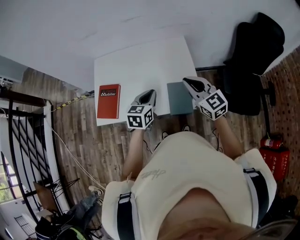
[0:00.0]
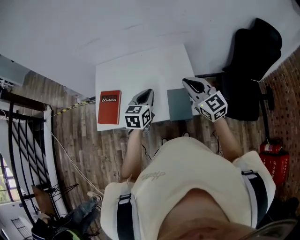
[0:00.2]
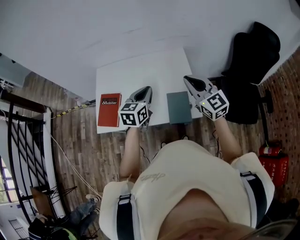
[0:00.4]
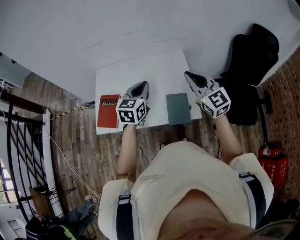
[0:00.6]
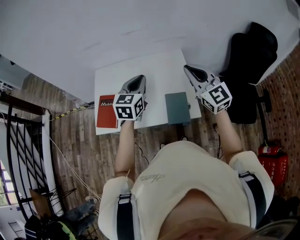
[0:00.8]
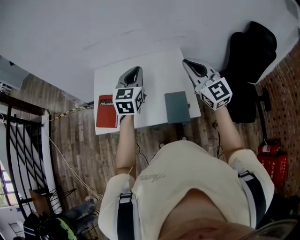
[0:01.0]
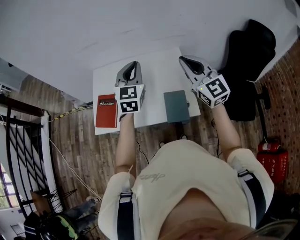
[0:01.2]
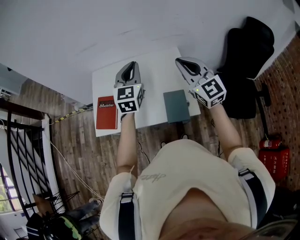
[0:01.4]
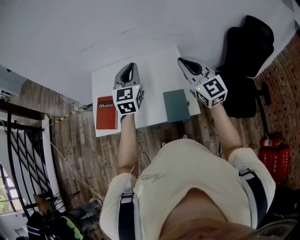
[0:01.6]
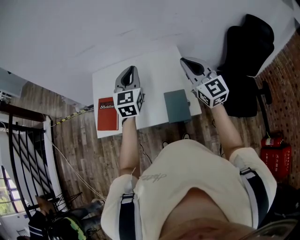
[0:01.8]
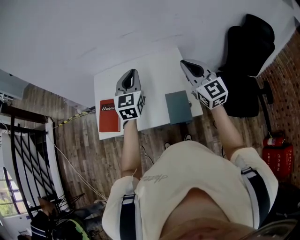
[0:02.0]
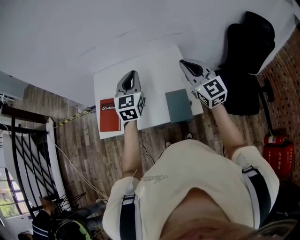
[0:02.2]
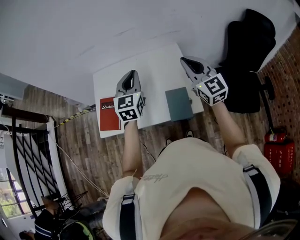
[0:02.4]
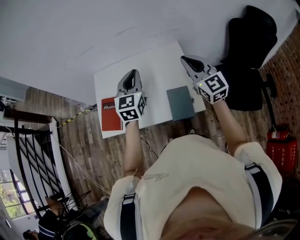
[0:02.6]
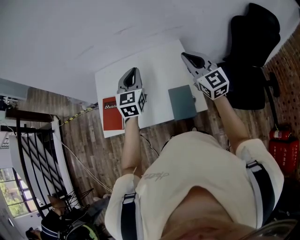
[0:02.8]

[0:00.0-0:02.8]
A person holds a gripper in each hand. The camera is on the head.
0:00.0 to 0:01.4: The left gripper is displaced upward and forward by some 20 cm, and changes its angle by approximately 30 degrees, while the right gripper moves upward, about 15 cm.
0:01.4 to 0:02.8: The right gripper ends up about 10 cm from where it was, while the left gripper travels downward by roughly 5 cm.

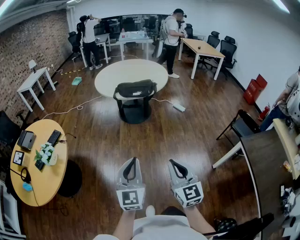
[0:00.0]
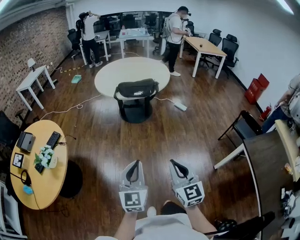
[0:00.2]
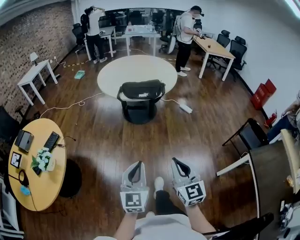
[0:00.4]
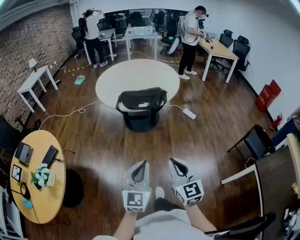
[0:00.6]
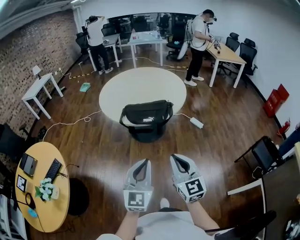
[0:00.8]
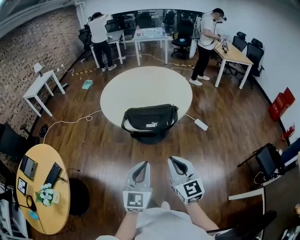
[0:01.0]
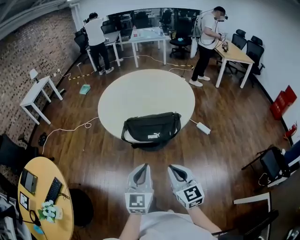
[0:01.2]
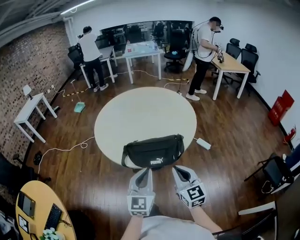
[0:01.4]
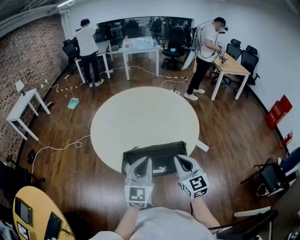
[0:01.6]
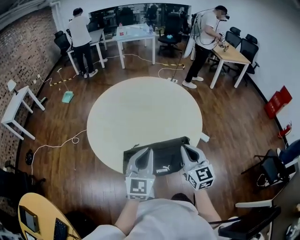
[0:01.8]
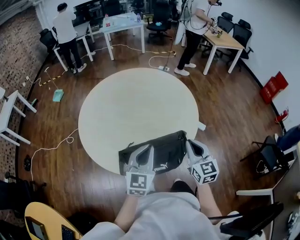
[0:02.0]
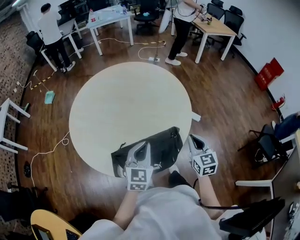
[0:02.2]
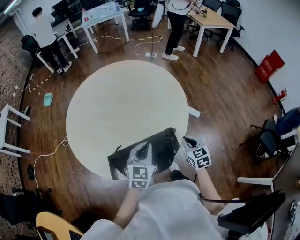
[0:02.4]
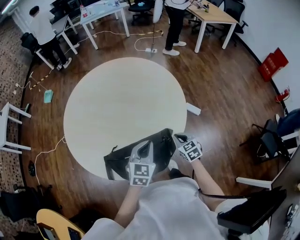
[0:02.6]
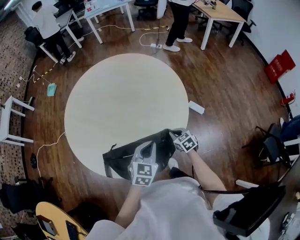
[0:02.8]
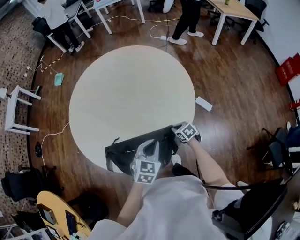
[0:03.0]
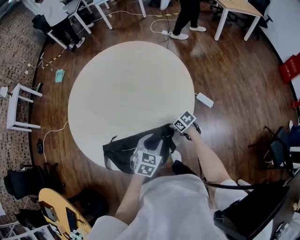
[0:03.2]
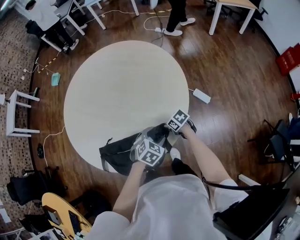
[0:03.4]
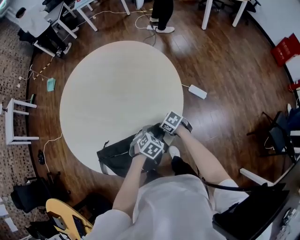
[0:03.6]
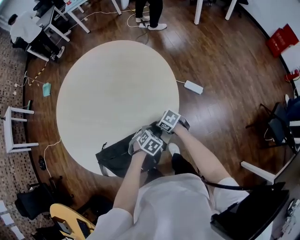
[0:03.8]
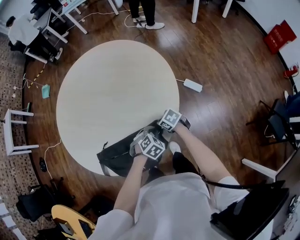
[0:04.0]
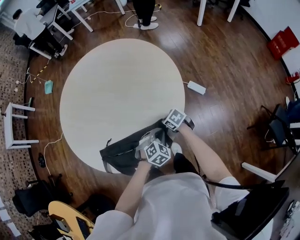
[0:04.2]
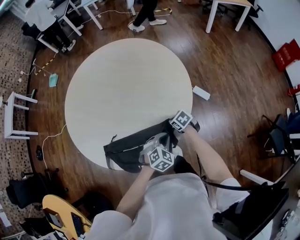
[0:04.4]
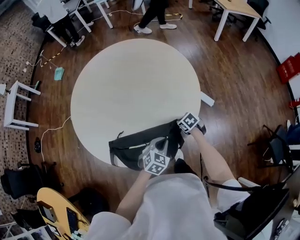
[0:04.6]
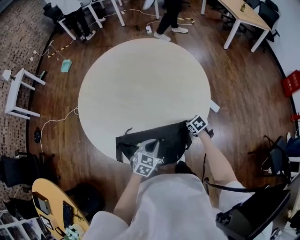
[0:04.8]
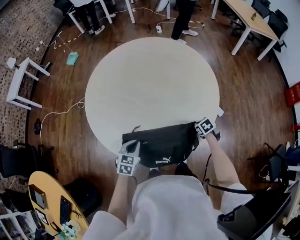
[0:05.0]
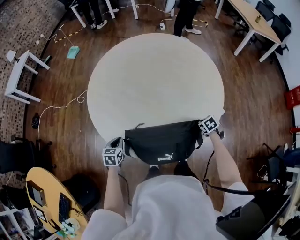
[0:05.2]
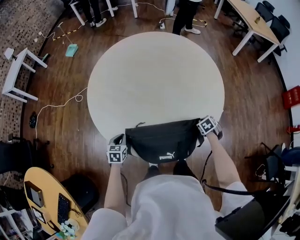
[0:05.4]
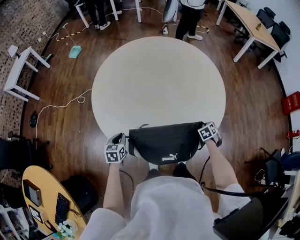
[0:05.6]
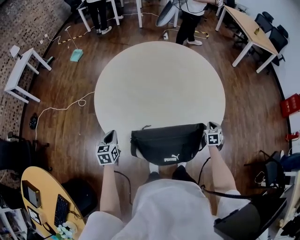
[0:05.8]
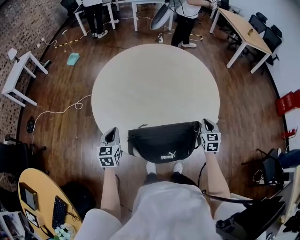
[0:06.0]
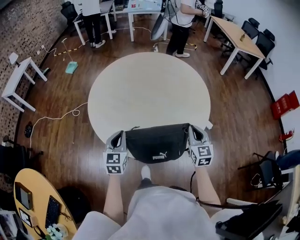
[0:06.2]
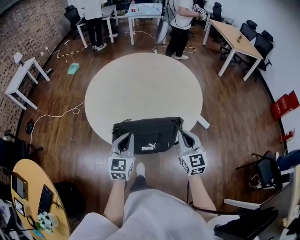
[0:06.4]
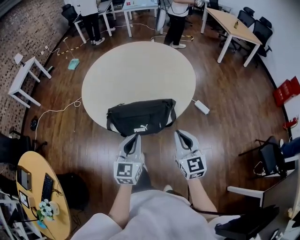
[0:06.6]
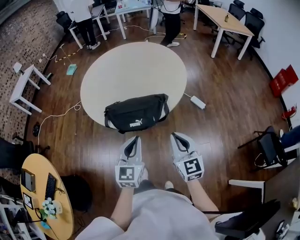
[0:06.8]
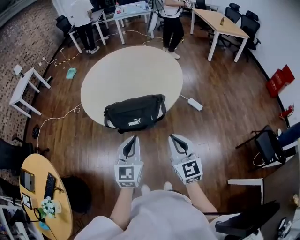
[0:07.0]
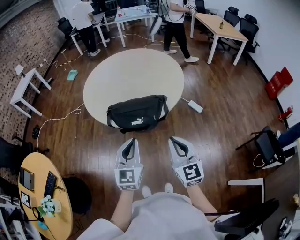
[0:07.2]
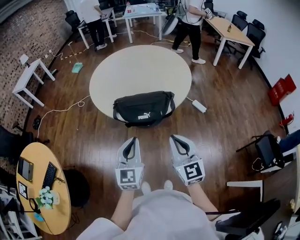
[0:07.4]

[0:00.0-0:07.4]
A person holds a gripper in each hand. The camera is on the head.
0:00.0 to 0:01.4: The pair of grippers is taken forward, about 70 cm.
0:01.4 to 0:03.0: The left gripper changes place by roughly 40 cm, and tilts its fingers some 40 degrees downward. The right gripper moves roughly 50 cm, and angles its fingers downward, by some 50 degrees.
0:03.0 to 0:04.4: The left gripper travels downward by approximately 10 cm, swivels approximately 30 degrees, and opens, then closes once more.
0:04.4 to 0:06.0: The right gripper goes approximately 15 cm upward, and changes its angle by roughly 50 degrees, while the left gripper changes place by some 50 cm, and rotates about 60 degrees.
0:06.0 to 0:07.4: The right gripper heads backward and upward, covering about 50 cm, and rotates about 30 degrees. The left gripper travels backward and to the right by some 50 cm, and turns by approximately 20 degrees.

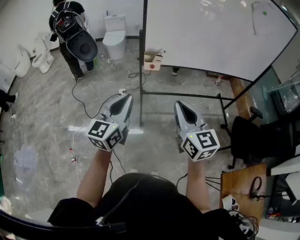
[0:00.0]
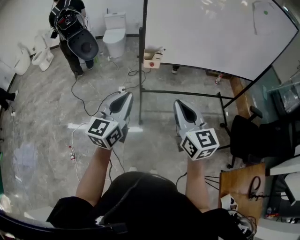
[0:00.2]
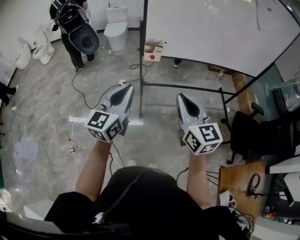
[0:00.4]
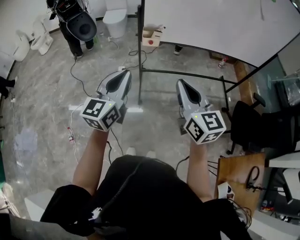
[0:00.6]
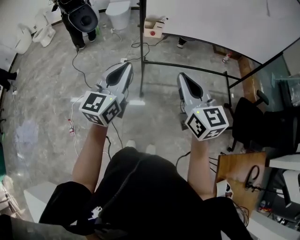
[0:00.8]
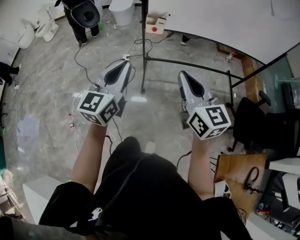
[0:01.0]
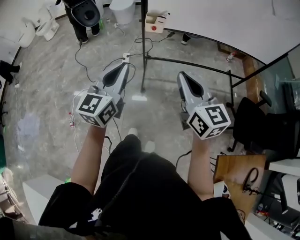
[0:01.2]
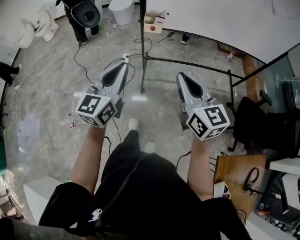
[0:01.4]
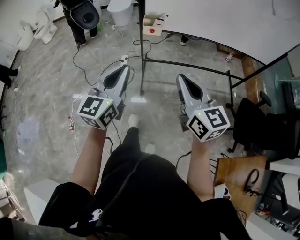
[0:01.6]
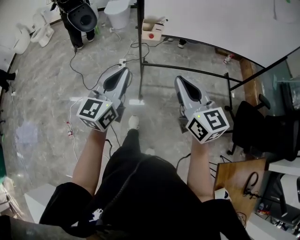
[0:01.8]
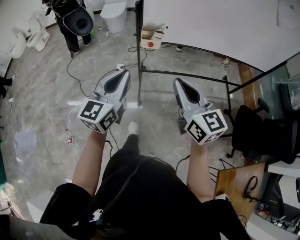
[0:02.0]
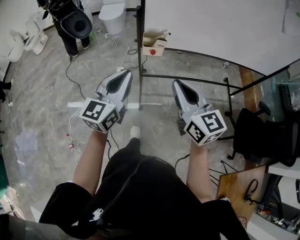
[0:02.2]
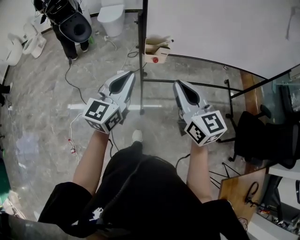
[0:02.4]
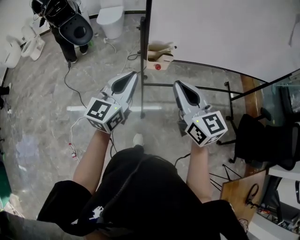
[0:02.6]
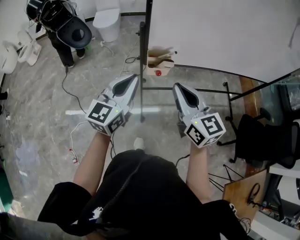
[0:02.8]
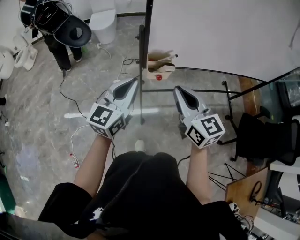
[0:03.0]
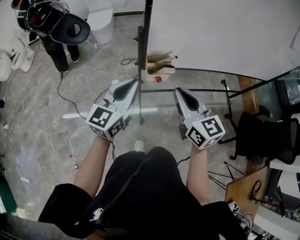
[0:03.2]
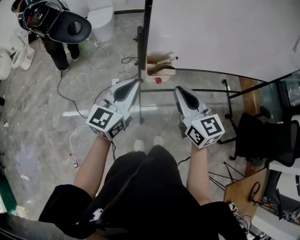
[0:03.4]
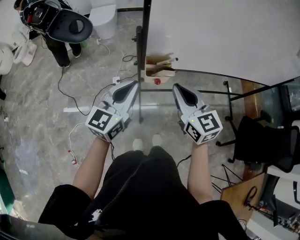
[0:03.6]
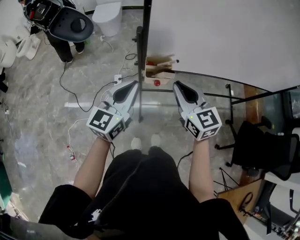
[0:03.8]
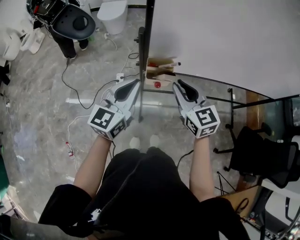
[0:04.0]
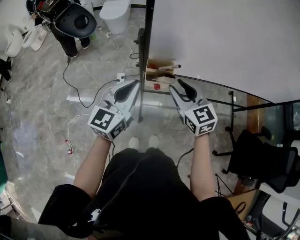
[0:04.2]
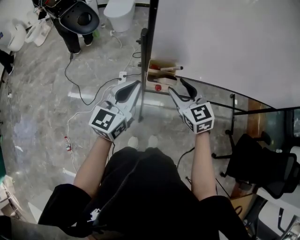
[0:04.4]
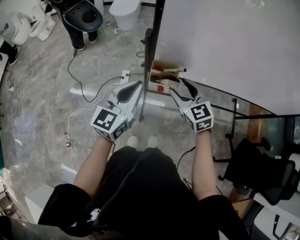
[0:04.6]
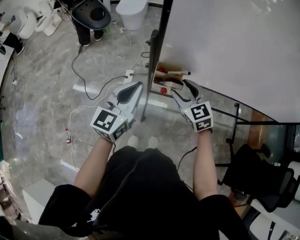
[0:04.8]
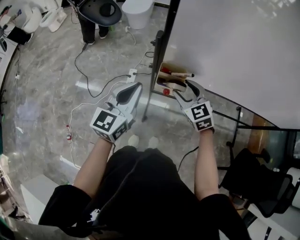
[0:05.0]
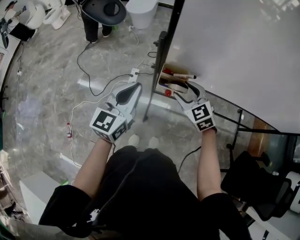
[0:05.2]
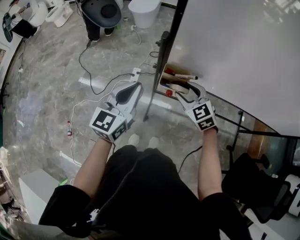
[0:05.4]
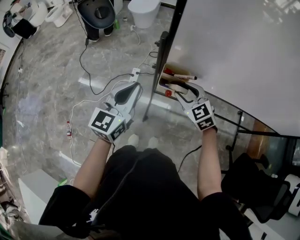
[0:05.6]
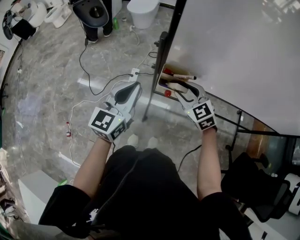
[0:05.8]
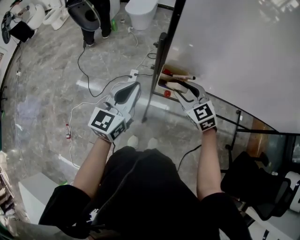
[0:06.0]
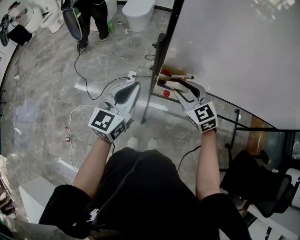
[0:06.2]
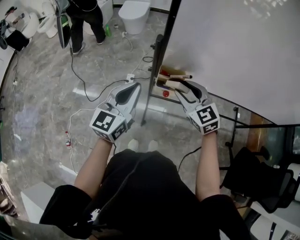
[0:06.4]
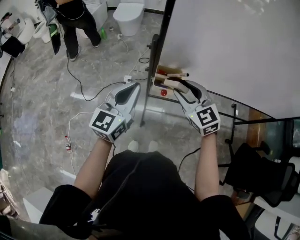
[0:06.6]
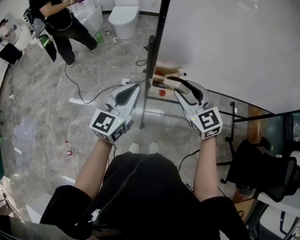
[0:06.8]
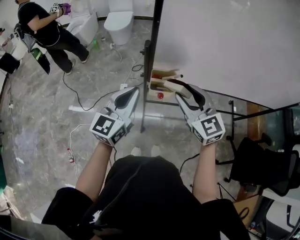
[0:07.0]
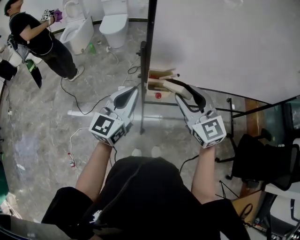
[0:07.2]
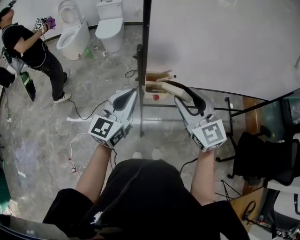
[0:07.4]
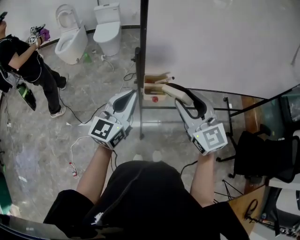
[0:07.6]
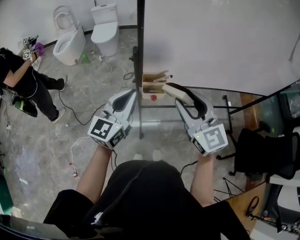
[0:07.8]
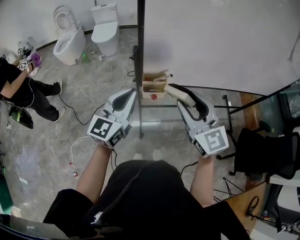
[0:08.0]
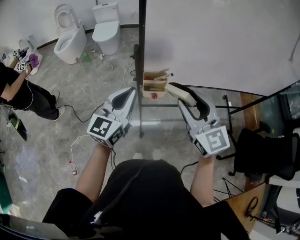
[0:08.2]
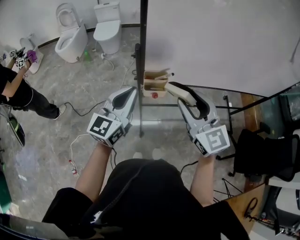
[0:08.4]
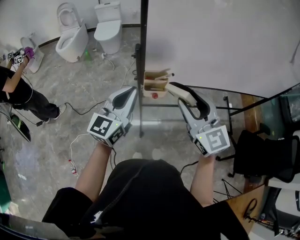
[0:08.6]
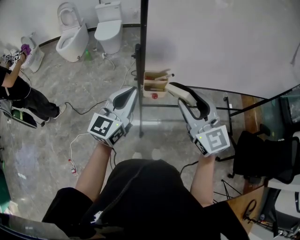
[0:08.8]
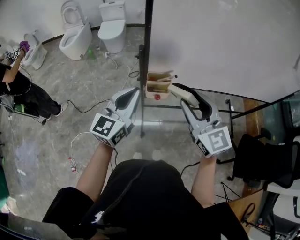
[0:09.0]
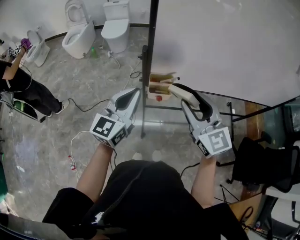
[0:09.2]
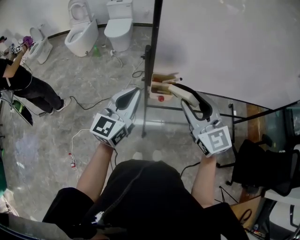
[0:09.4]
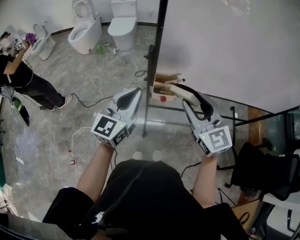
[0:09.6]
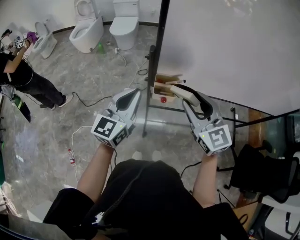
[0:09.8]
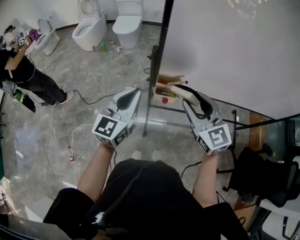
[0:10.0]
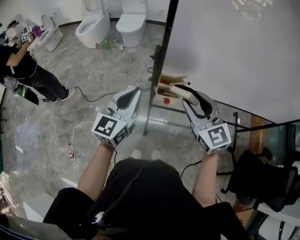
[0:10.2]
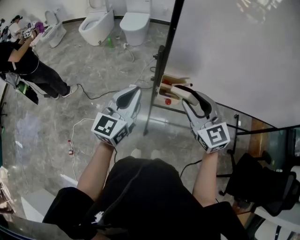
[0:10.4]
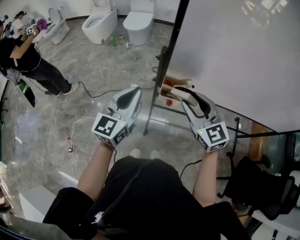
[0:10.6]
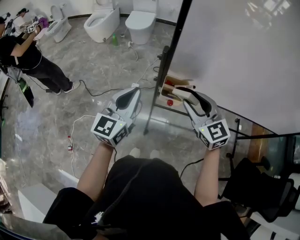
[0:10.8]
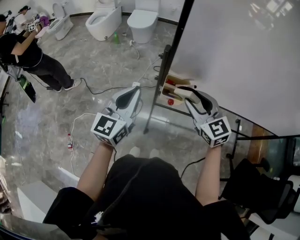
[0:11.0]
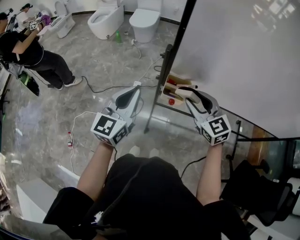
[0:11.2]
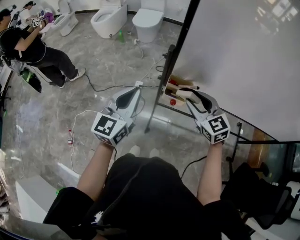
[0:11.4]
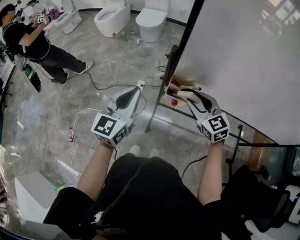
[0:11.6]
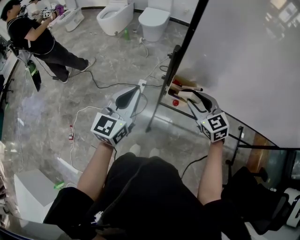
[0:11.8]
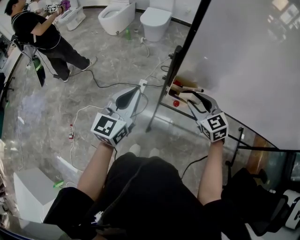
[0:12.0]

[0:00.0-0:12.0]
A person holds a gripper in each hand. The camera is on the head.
0:00.0 to 0:01.6: The right gripper shifts by approximately 5 cm. Meanwhile the left gripper changes place by some 5 cm.
0:01.6 to 0:03.0: Both grippers move forward, approximately 30 cm.
0:03.0 to 0:04.4: The left gripper is displaced forward by about 5 cm, while the right gripper goes approximately 15 cm forward and downward, swivels approximately 30 degrees, and opens.
0:06.0 to 0:07.6: The left gripper goes approximately 5 cm upward, while the right gripper shifts approximately 20 cm upward and backward, and changes its angle by approximately 30 degrees.
0:07.6 to 0:09.0: The grippers move only a little.
0:09.0 to 0:10.4: The right gripper shifts approximately 5 cm forward.
0:10.4 to 0:12.0: The right gripper shifts approximately 10 cm downward and forward.

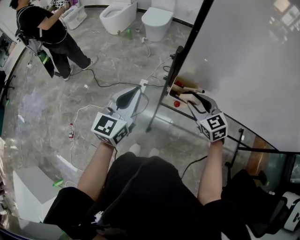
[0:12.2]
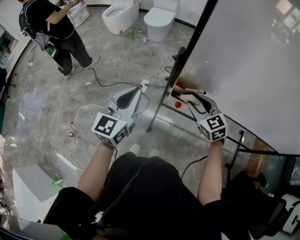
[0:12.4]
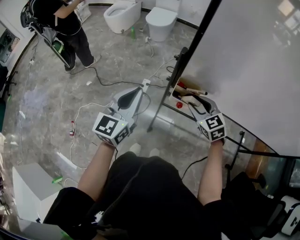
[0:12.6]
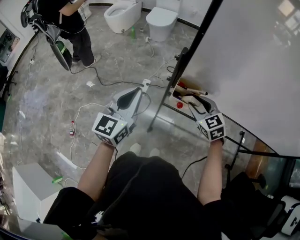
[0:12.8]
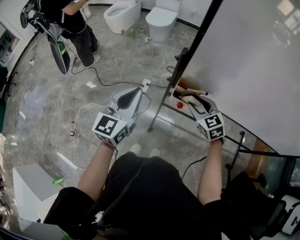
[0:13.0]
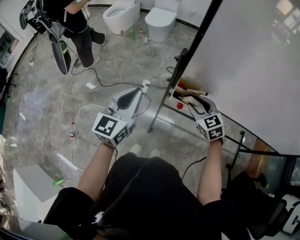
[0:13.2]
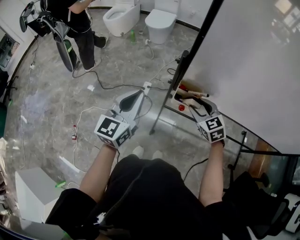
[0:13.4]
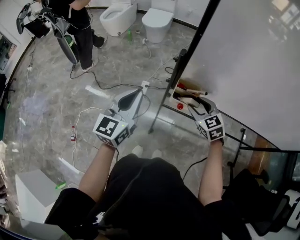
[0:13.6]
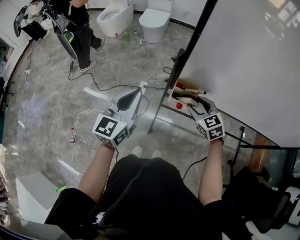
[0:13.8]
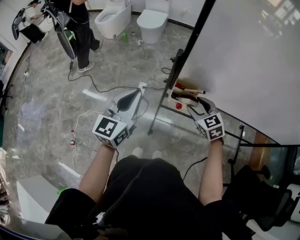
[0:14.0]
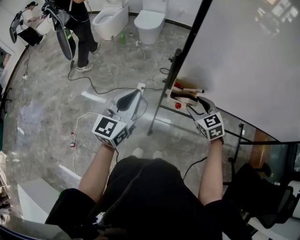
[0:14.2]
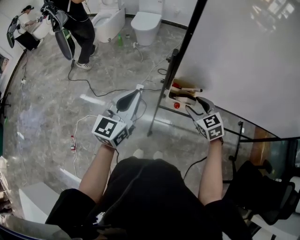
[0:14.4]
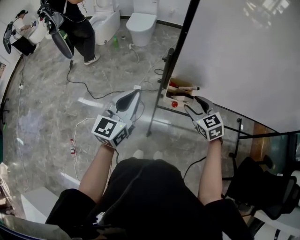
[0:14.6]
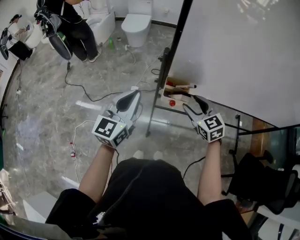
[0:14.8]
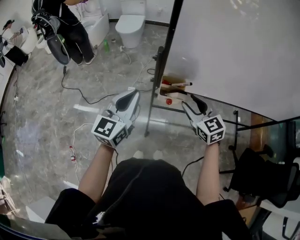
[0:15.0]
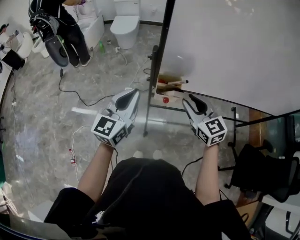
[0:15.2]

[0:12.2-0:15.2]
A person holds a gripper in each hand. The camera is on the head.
0:12.2 to 0:13.8: The grippers make only small movements.
0:13.8 to 0:15.2: The right gripper goes approximately 10 cm upward and backward, swivels about 20 degrees, and closes.
